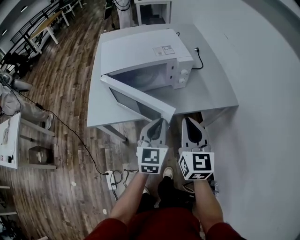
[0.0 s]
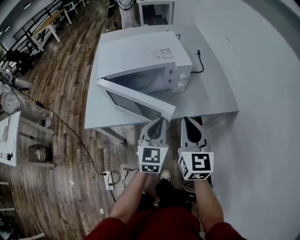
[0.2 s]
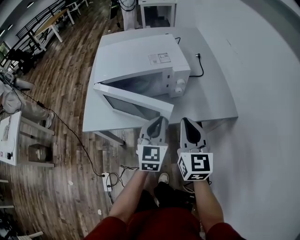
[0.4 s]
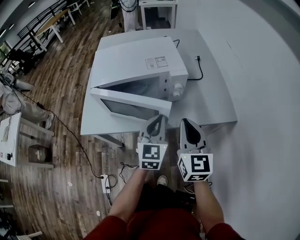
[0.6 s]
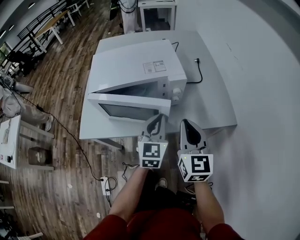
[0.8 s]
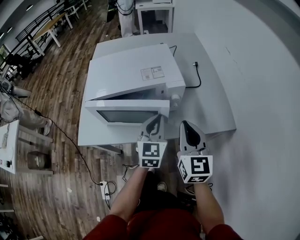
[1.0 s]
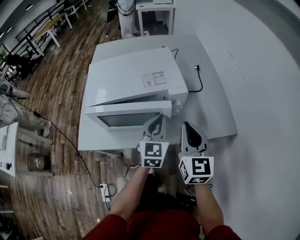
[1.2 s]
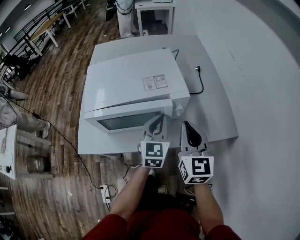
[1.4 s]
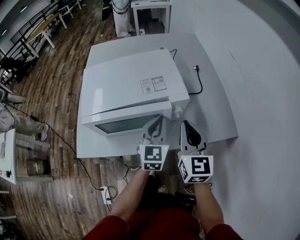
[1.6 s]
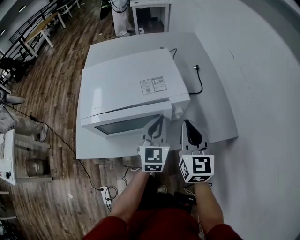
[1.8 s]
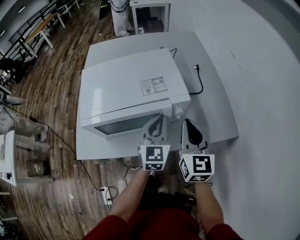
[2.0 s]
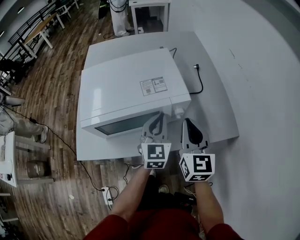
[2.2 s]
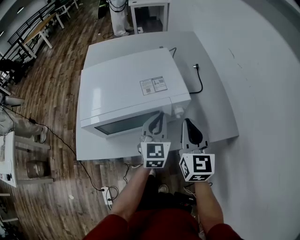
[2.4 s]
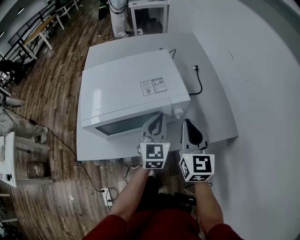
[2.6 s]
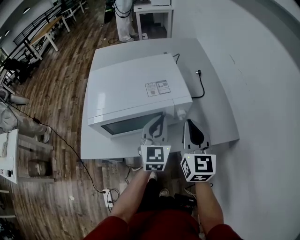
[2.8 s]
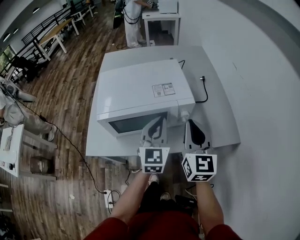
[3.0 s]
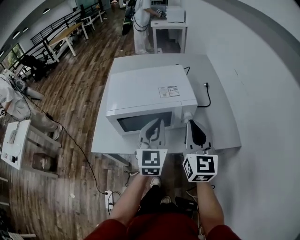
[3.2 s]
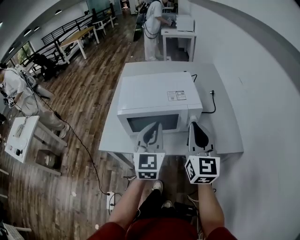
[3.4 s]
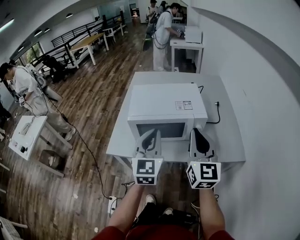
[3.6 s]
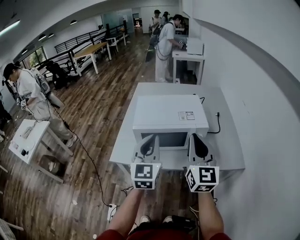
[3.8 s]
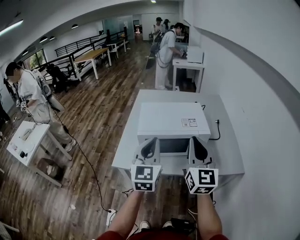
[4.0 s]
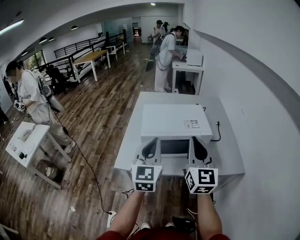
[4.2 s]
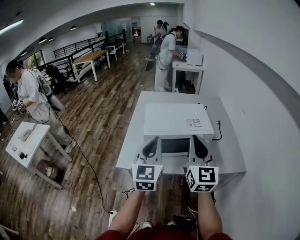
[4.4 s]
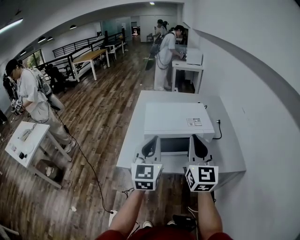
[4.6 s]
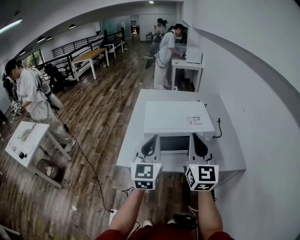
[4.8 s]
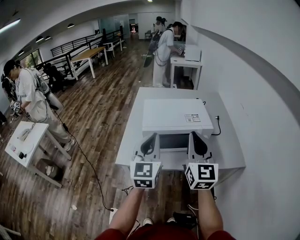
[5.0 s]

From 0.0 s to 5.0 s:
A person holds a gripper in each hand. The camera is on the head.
From 0.0 s to 1.6 s: The two grippers go about 20 cm forward.
From 1.6 s to 3.4 s: The right gripper shifts roughly 15 cm upward and backward. The left gripper moves upward, backward and to the left, approximately 20 cm.
From 3.4 s to 5.0 s: The right gripper goes some 15 cm to the left and upward, while the left gripper goes about 15 cm to the left, upward and backward.

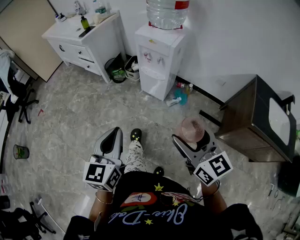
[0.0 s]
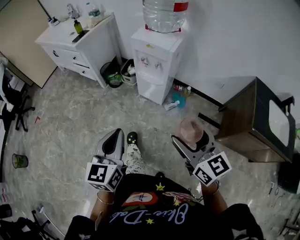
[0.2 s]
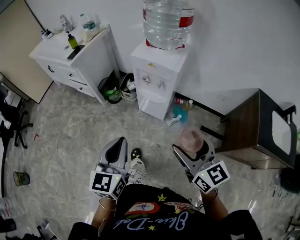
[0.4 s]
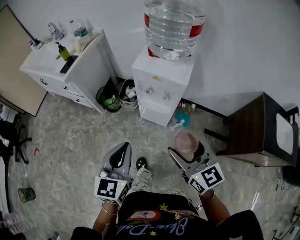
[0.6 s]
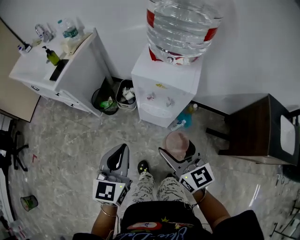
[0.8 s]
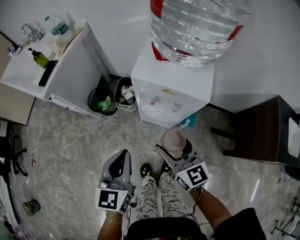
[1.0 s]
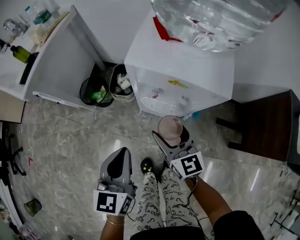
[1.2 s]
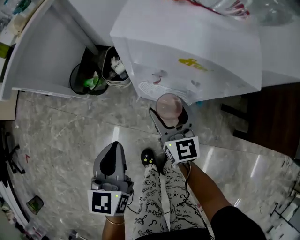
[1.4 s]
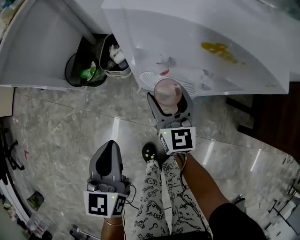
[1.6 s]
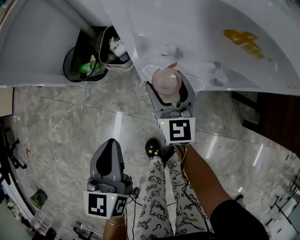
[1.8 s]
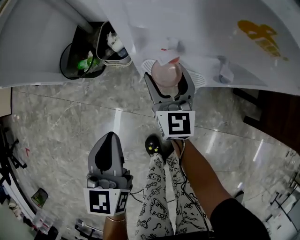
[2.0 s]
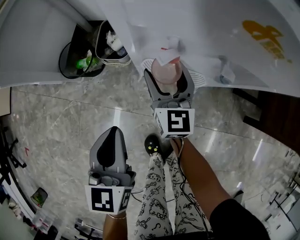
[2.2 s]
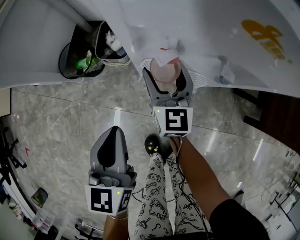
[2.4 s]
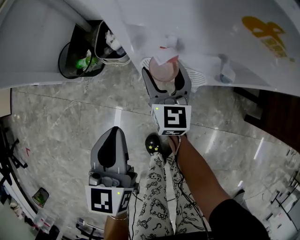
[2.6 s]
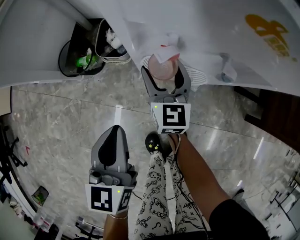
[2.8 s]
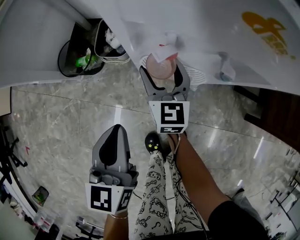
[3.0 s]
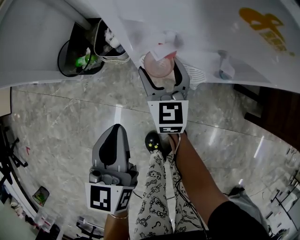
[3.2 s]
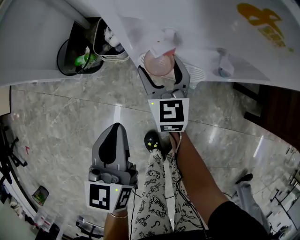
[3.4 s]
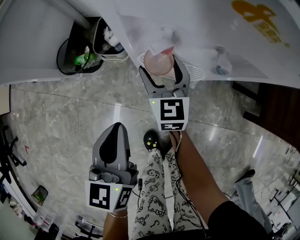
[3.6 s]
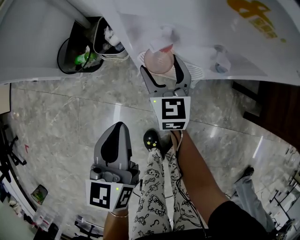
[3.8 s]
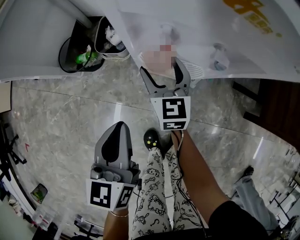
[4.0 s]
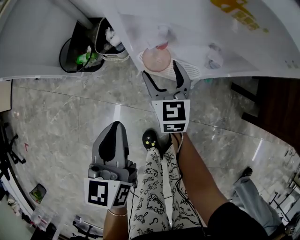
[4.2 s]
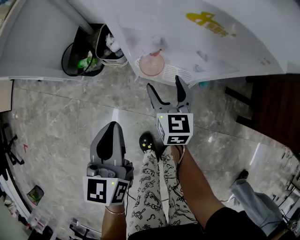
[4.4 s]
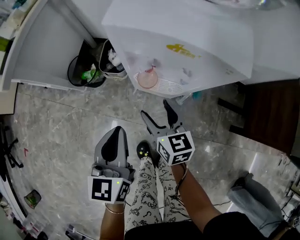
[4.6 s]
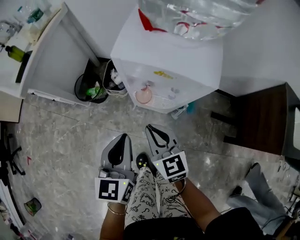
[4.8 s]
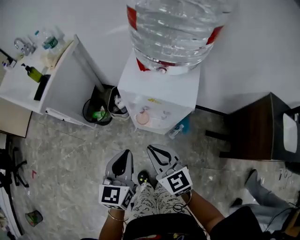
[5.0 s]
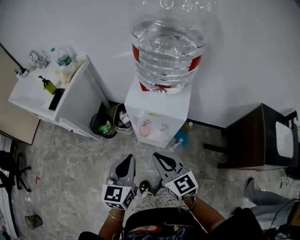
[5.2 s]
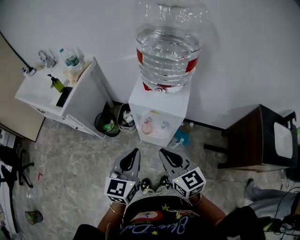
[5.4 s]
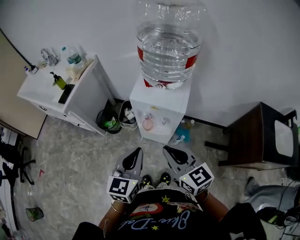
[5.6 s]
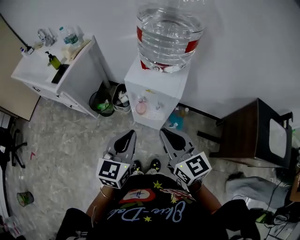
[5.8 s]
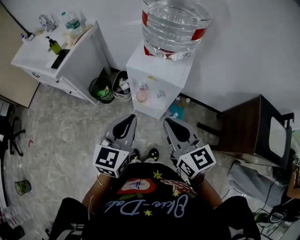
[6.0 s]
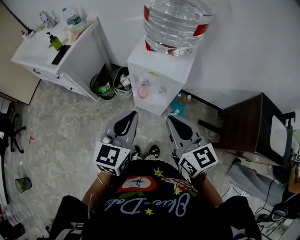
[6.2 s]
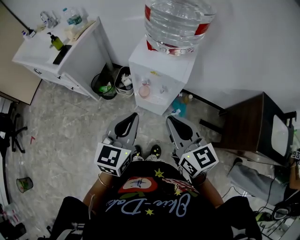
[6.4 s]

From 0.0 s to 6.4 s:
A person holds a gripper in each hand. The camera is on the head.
From 0.0 s to 1.6 s: The two grippers travel together, forward, about 60 cm. Both grippers travel together downward, about 35 cm. The right gripper changes its angle by approximately 30 degrees.
From 1.6 s to 3.2 s: The right gripper heads downward, covering approximately 5 cm; the left gripper changes place by some 5 cm.
From 3.2 s to 4.8 s: The right gripper is displaced upward and backward by some 30 cm, and closes up, while the left gripper is displaced upward and backward by about 20 cm.
From 4.8 s to 6.4 s: Both grippers travel together upward and backward, roughly 30 cm.

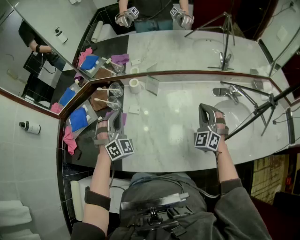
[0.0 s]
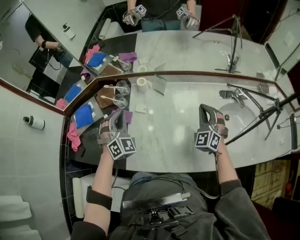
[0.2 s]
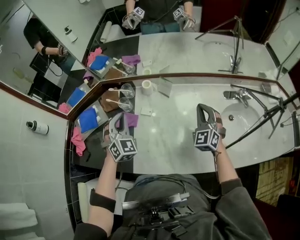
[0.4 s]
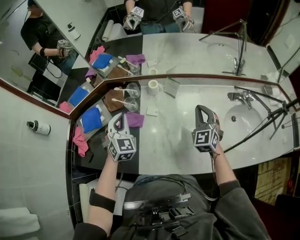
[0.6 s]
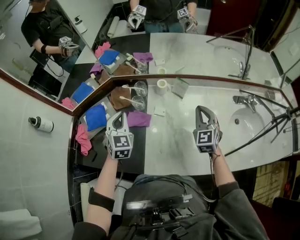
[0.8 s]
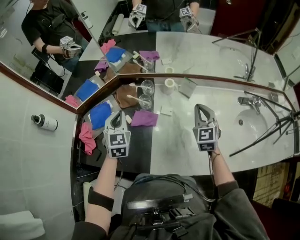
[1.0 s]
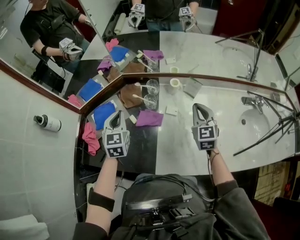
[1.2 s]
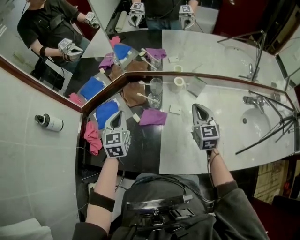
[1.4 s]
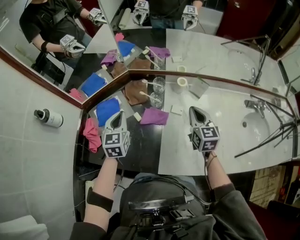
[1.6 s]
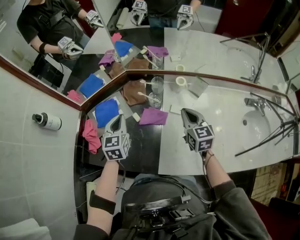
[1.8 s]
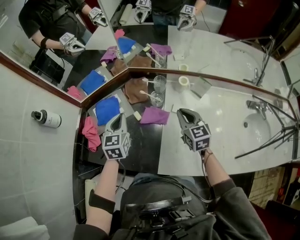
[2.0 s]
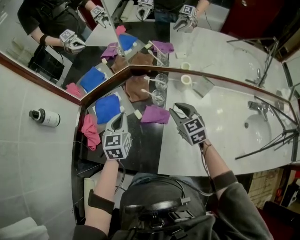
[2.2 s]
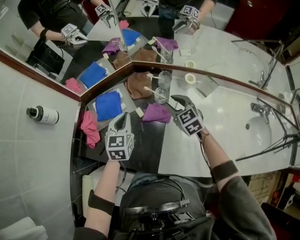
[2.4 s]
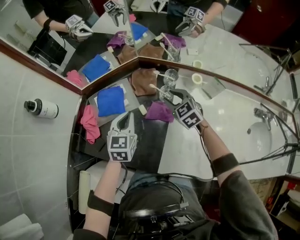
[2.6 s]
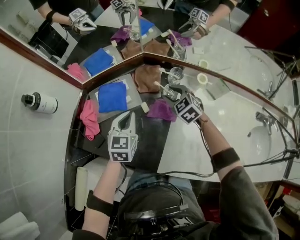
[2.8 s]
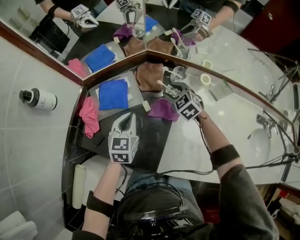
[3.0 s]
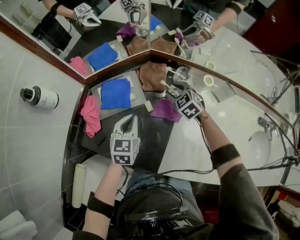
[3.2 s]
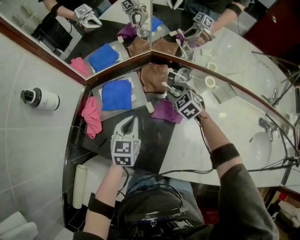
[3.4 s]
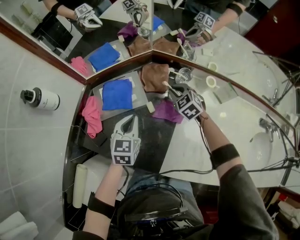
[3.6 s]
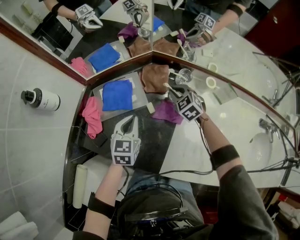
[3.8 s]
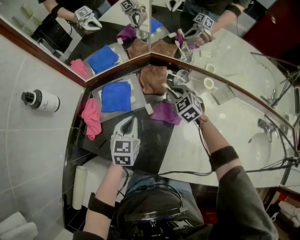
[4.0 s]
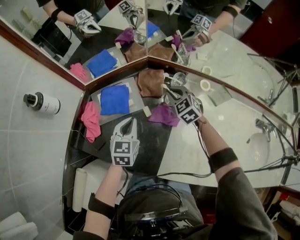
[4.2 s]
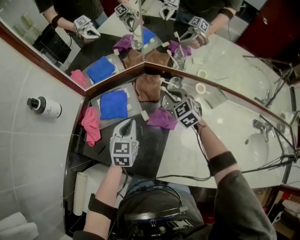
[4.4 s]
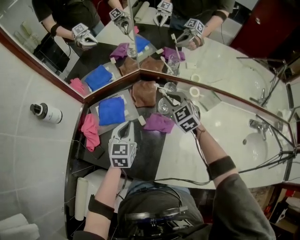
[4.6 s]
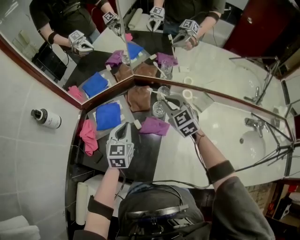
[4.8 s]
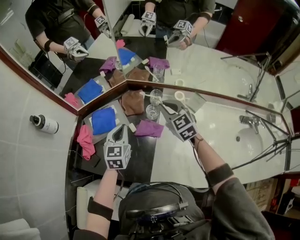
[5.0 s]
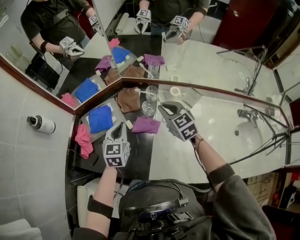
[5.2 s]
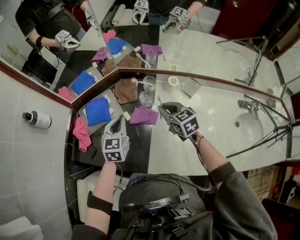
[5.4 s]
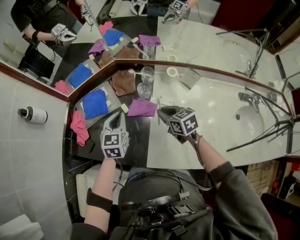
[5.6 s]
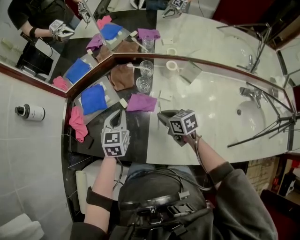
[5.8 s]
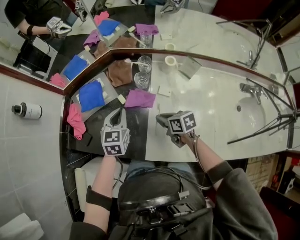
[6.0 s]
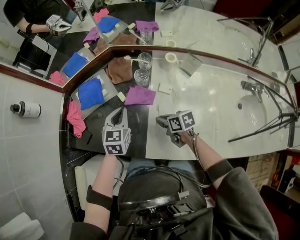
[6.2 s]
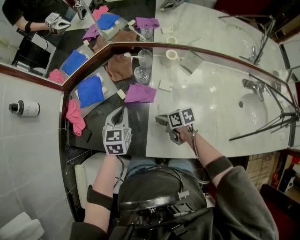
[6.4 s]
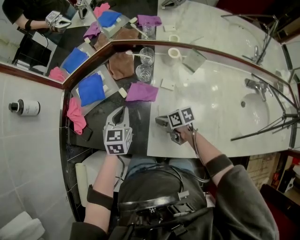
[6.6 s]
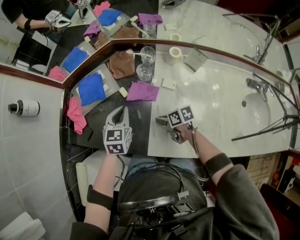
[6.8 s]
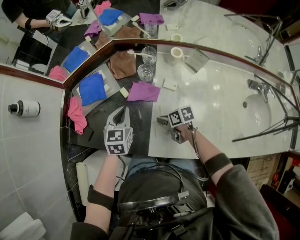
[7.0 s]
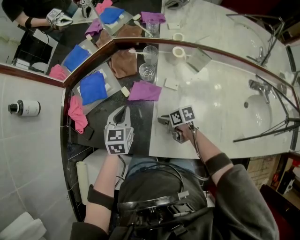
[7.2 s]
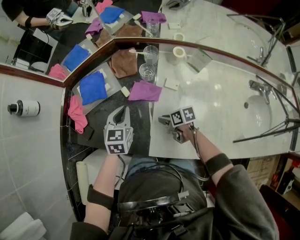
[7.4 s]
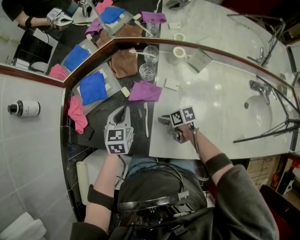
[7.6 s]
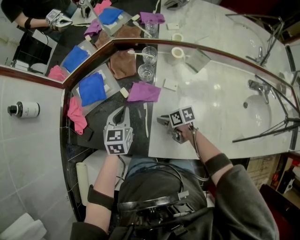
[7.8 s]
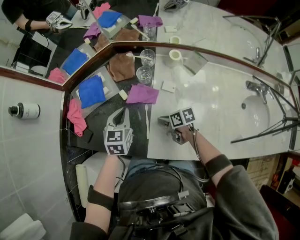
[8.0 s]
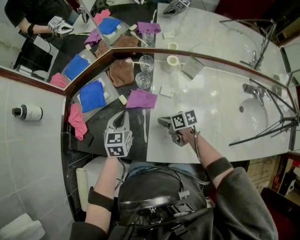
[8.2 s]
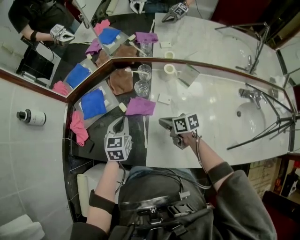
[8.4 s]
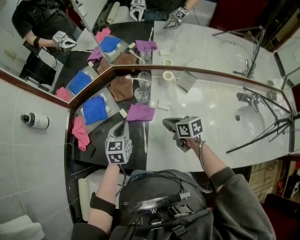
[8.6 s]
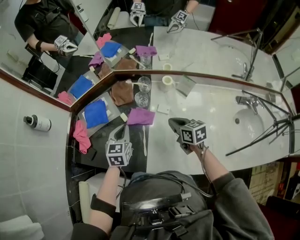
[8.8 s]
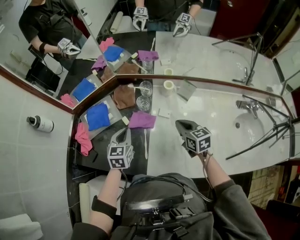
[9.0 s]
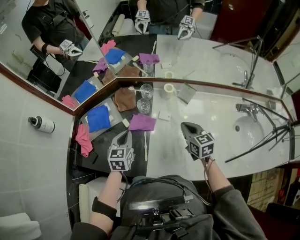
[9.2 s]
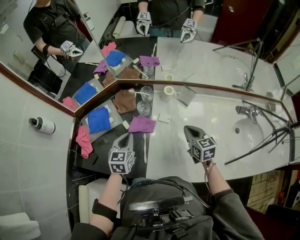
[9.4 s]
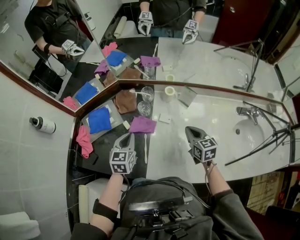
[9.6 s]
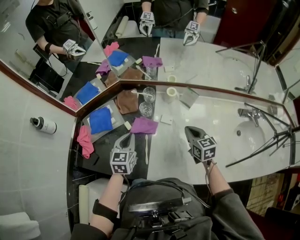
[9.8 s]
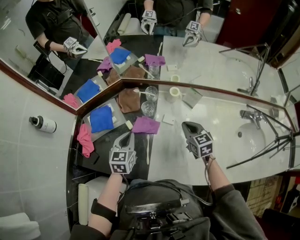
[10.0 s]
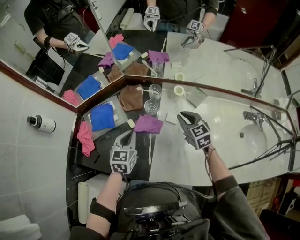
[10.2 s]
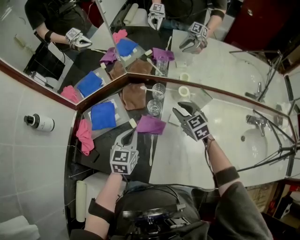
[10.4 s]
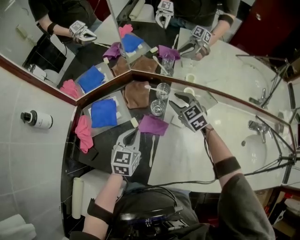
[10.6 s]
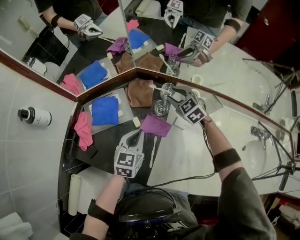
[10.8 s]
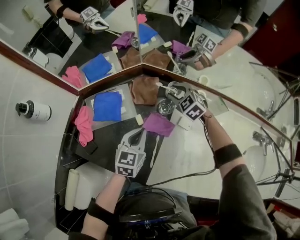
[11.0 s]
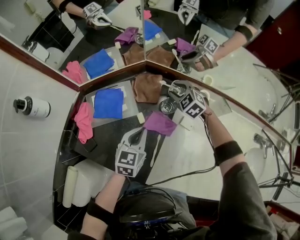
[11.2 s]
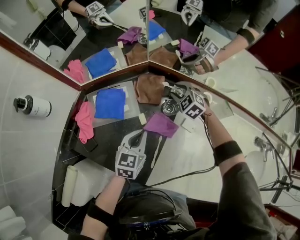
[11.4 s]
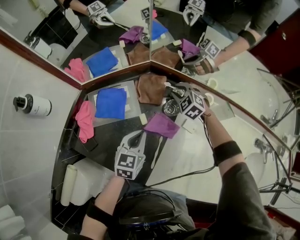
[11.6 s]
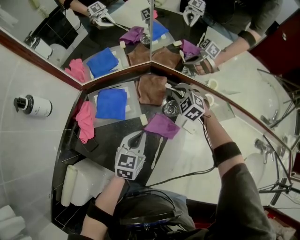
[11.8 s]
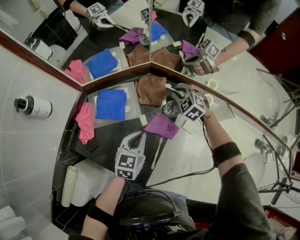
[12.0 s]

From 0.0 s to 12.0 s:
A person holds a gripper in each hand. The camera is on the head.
From 0.0 s to 1.6 s: The two grippers go some 30 cm to the left. The left gripper rotates around the line of its fingers by roughly 60 degrees, counterclockwise from behind. The right gripper rolls clockwise, seen from behind, by some 50 degrees.
From 1.6 s to 3.0 s: The left gripper shifts roughly 10 cm downward; the right gripper moves to the left, forward and downward, about 25 cm, changes its angle by some 50 degrees, and opens.
From 3.0 s to 4.4 s: The right gripper heads upward, covering some 5 cm, and closes up.
From 4.4 s to 6.0 s: The left gripper heads to the right, covering approximately 5 cm. Meanwhile the right gripper travels backward by approximately 25 cm, and twists approximately 60 degrees clockwise, seen from behind.
From 6.0 s to 7.6 s: The right gripper travels downward by some 10 cm.
From 7.6 s to 9.0 s: The right gripper moves upward and to the right, about 25 cm, turns by some 50 degrees, and closes up.
From 9.0 s to 10.4 s: The right gripper goes approximately 15 cm forward, rotates approximately 30 degrees, and opens its fingers.
From 10.4 s to 12.0 s: The right gripper shifts about 20 cm forward, downward and to the left, and changes its angle by some 40 degrees.
